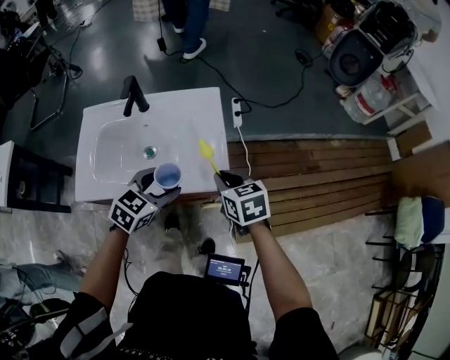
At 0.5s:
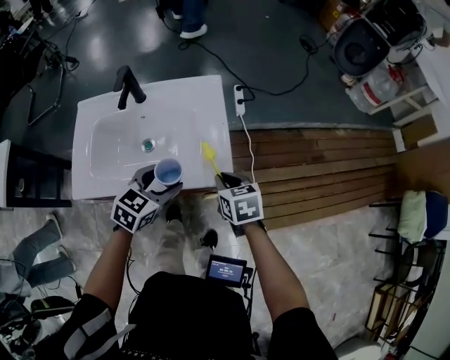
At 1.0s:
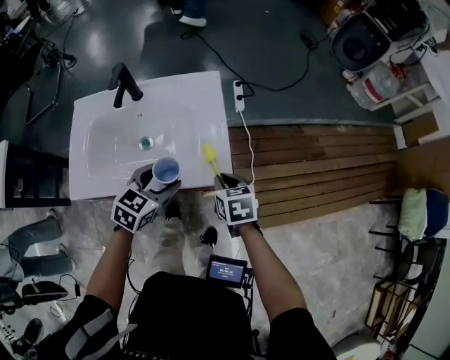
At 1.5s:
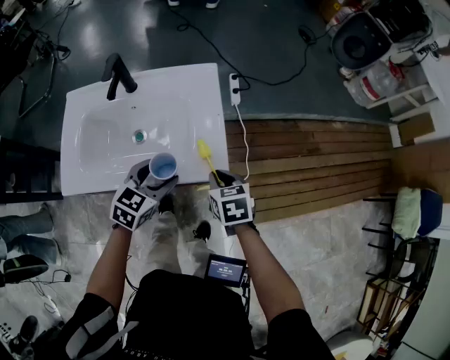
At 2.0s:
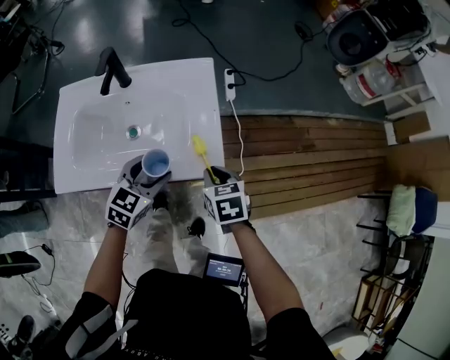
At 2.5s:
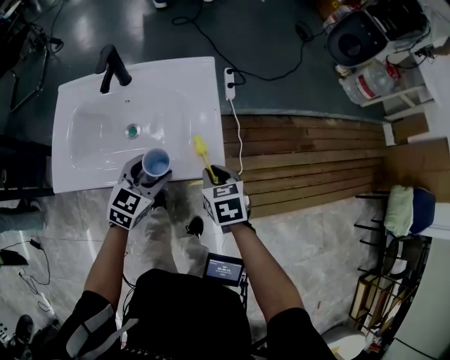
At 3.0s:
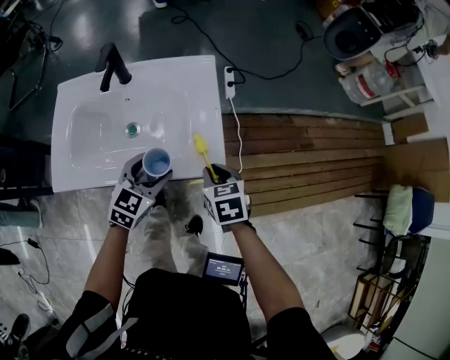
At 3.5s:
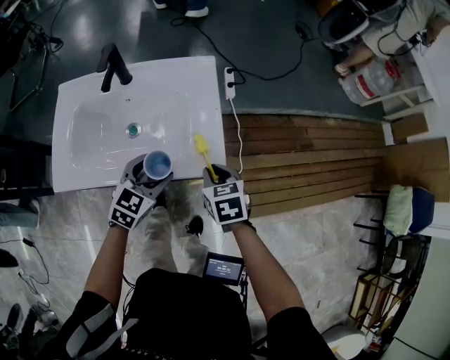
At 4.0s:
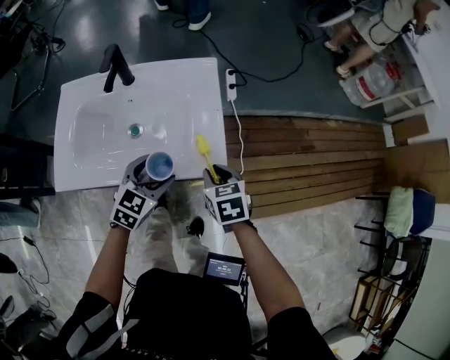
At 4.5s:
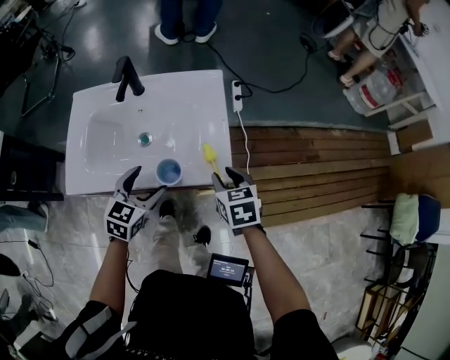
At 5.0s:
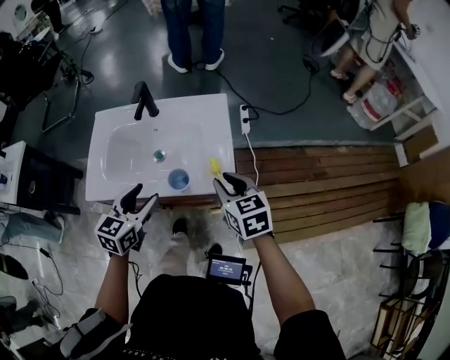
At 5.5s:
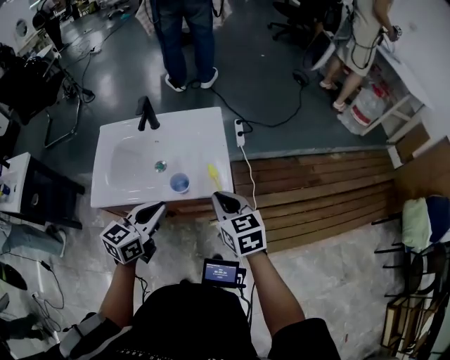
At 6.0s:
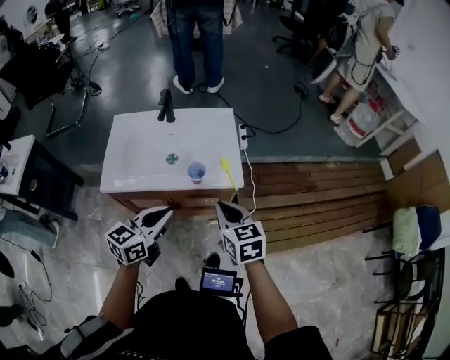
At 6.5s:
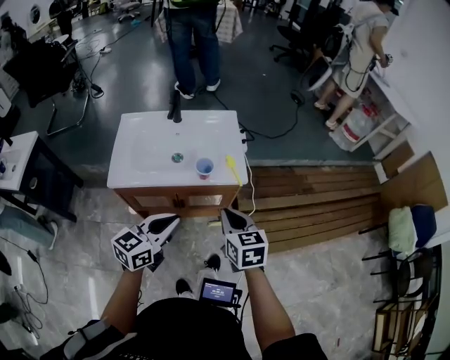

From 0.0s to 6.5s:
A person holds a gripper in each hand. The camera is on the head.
From 0.0s to 2.0s: Both grippers travel together downward, about 10 cm.
From 2.0s to 4.5s: The left gripper is displaced to the left by roughly 5 cm.
From 4.5s to 6.5s: Both grippers move backward and upward, some 25 cm. The left gripper changes its angle by some 30 degrees, and closes up. The right gripper closes.

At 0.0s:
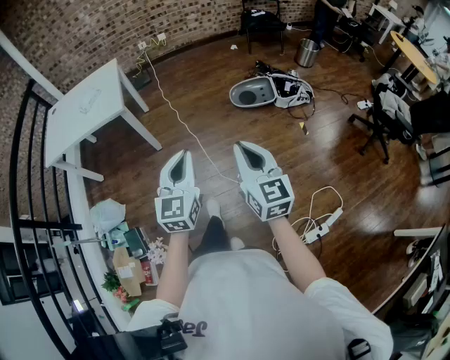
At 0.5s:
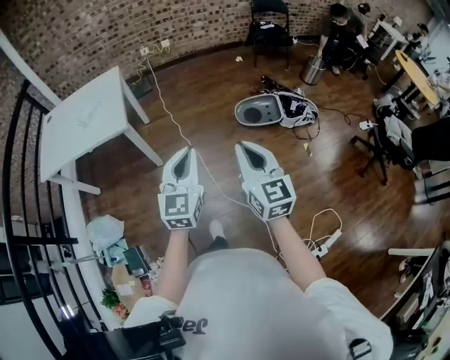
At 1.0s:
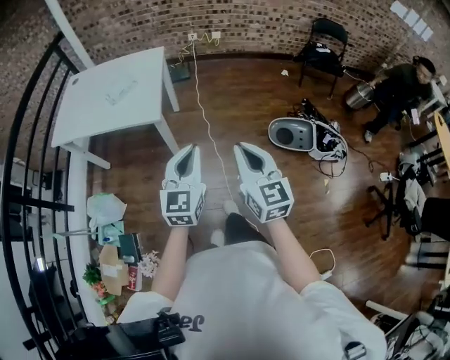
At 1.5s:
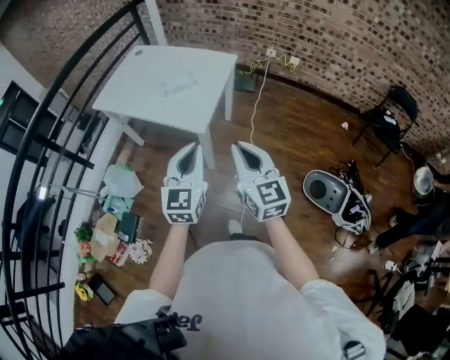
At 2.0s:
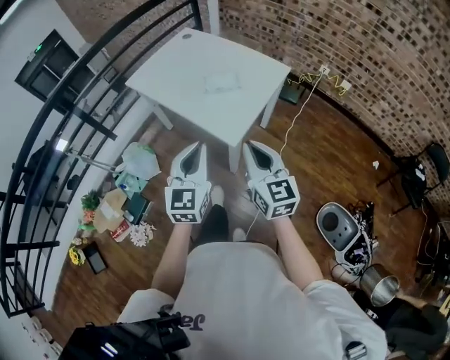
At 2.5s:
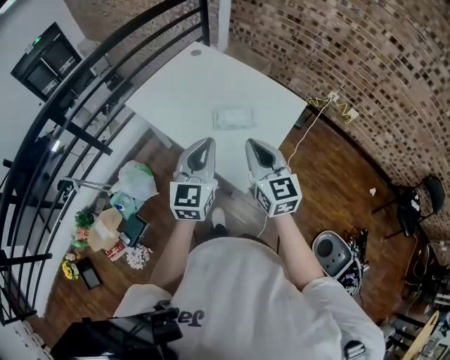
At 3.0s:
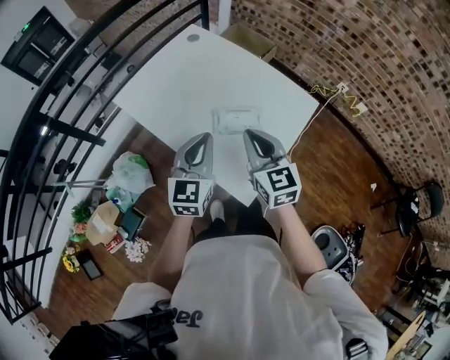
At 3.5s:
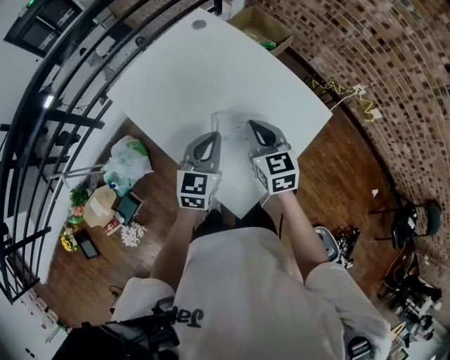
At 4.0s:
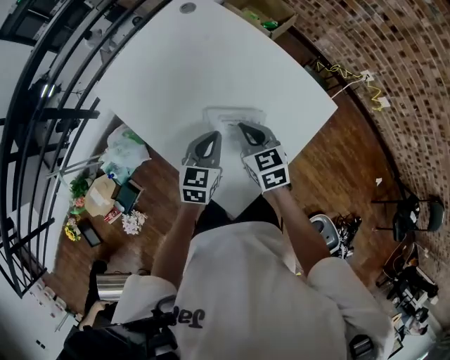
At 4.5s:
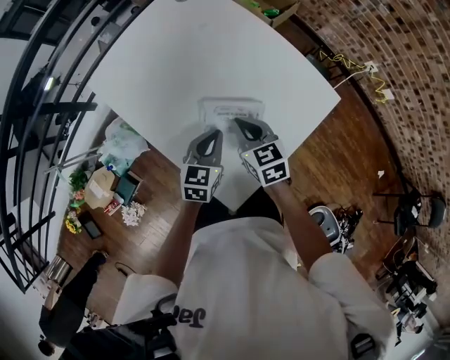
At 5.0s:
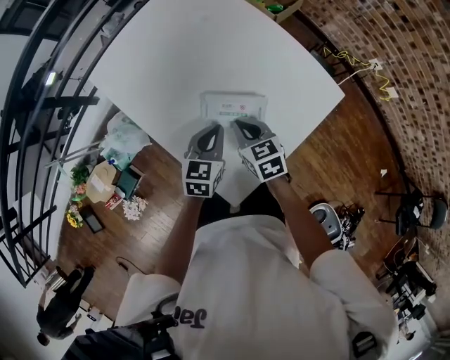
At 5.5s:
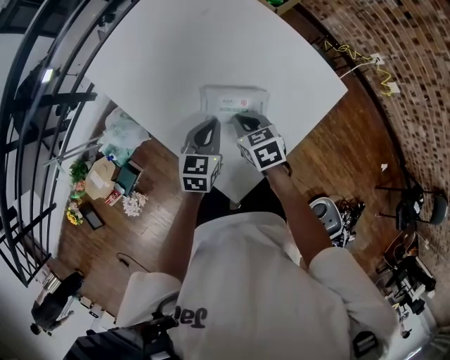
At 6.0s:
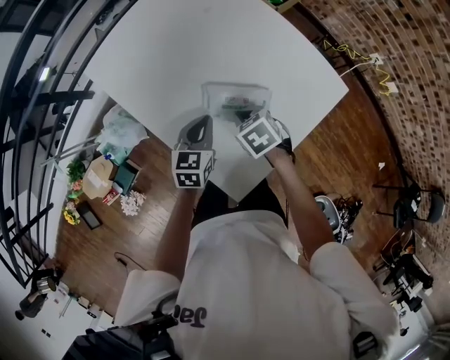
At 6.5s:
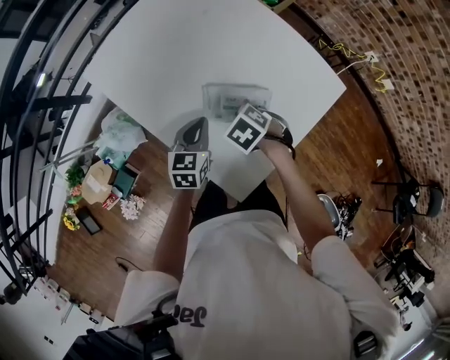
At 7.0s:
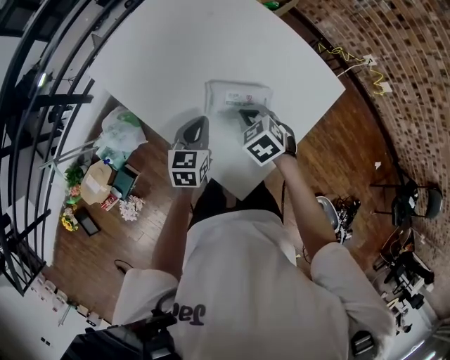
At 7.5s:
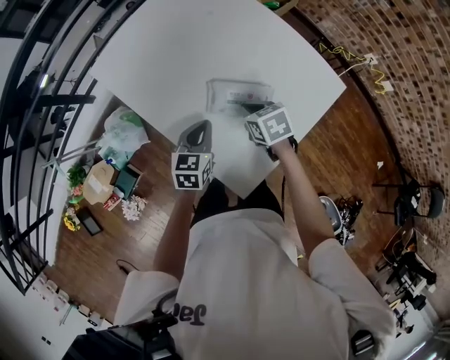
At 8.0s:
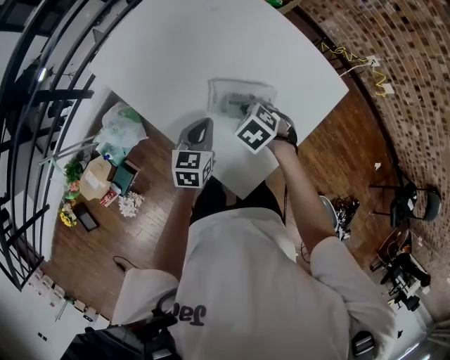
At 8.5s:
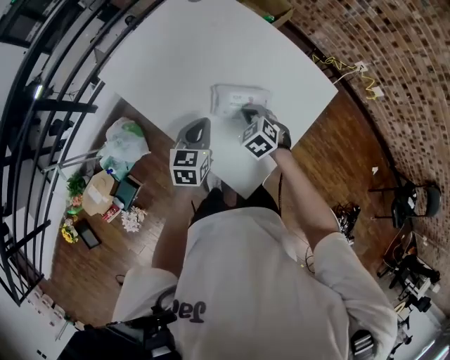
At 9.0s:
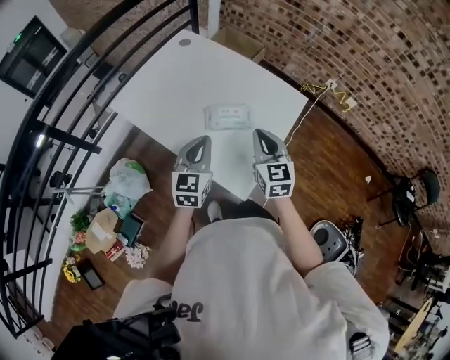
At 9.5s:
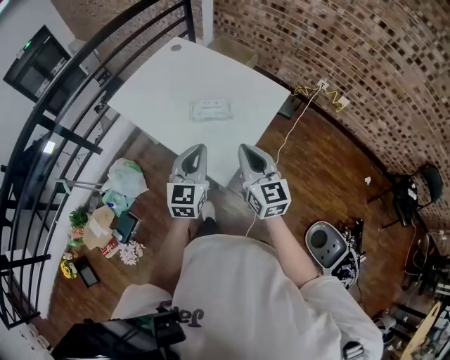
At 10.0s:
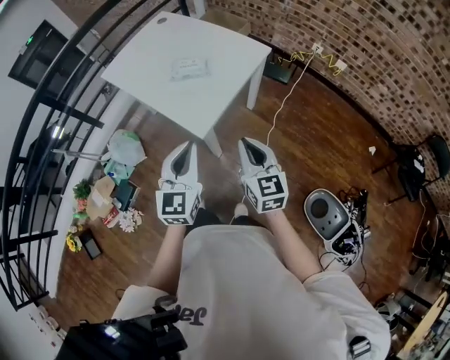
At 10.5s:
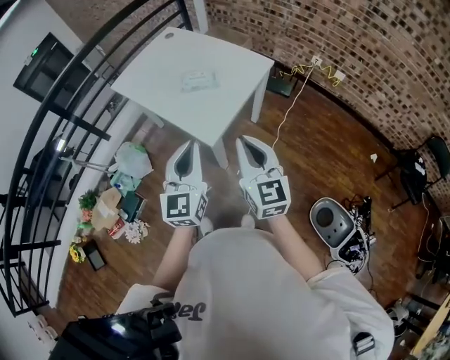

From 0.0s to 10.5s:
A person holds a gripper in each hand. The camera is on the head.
From 0.0s to 2.0s: The pair of grippers is taken some 60 cm. The right gripper rotates roughly 60 degrees. Meanwhile the left gripper turns by some 50 degrees.
From 2.0s to 4.0s: The pair of grippers is taken forward, some 40 cm. The two grippers go roughly 20 cm downward. The left gripper rotates some 30 degrees. The right gripper turns by approximately 30 degrees.
From 4.0s to 6.5s: The right gripper shifts about 10 cm downward, and points its fingers approximately 40 degrees further downward, while the left gripper travels downward by about 5 cm.
From 6.5s to 8.5s: The left gripper moves some 5 cm; the right gripper swivels some 20 degrees.
From 8.5s to 10.5s: Both grippers are carried backward, roughly 40 cm. The grippers both shift upward by some 30 cm. The right gripper tilts its fingers about 50 degrees upward. Meanwhile the left gripper tilts its fingers roughly 30 degrees upward.

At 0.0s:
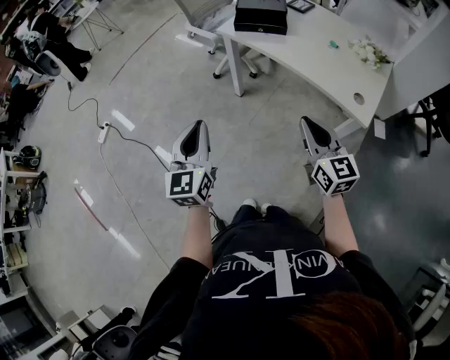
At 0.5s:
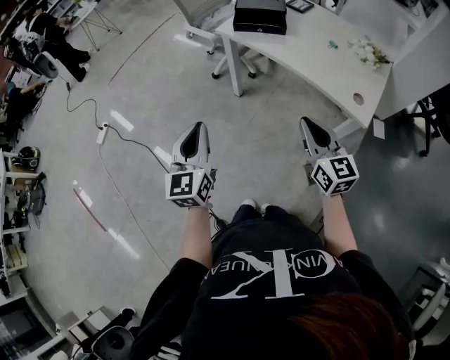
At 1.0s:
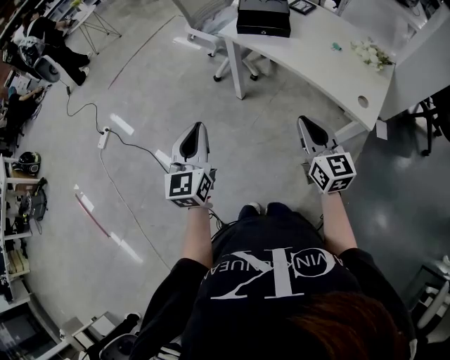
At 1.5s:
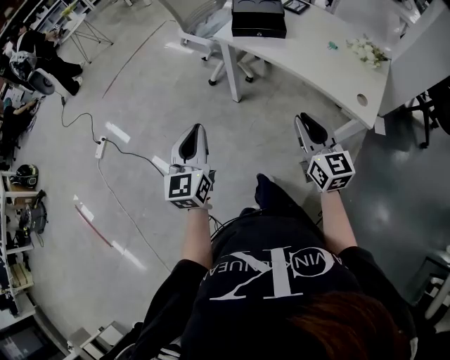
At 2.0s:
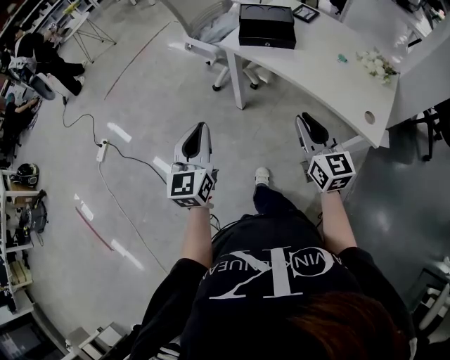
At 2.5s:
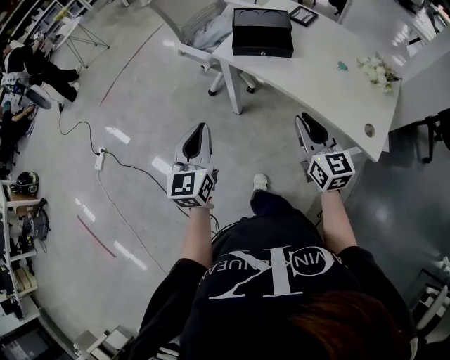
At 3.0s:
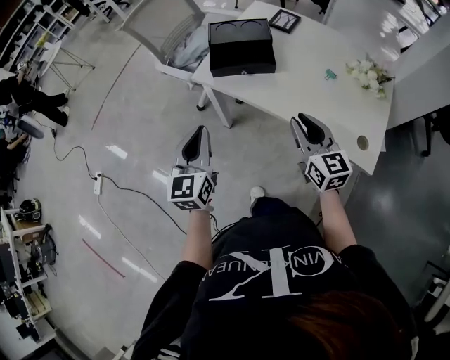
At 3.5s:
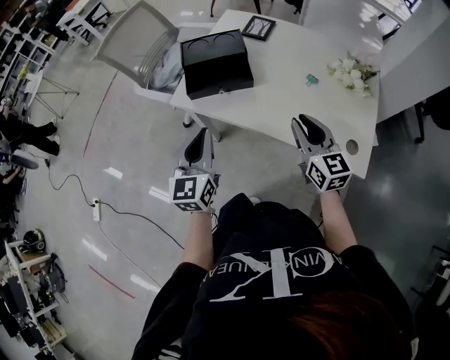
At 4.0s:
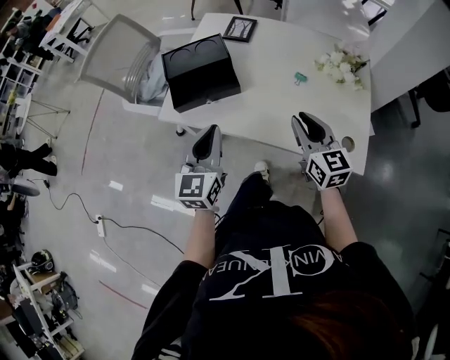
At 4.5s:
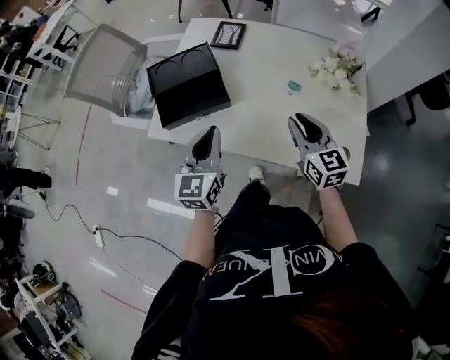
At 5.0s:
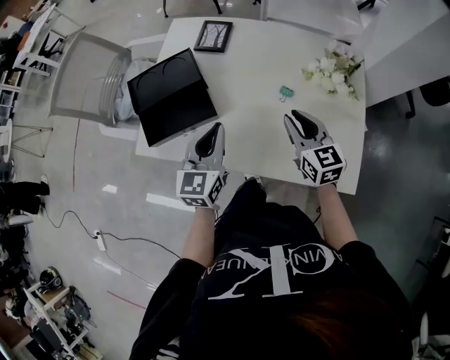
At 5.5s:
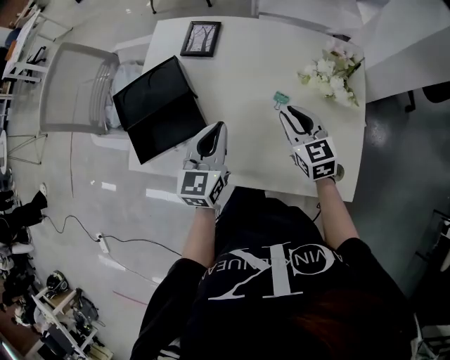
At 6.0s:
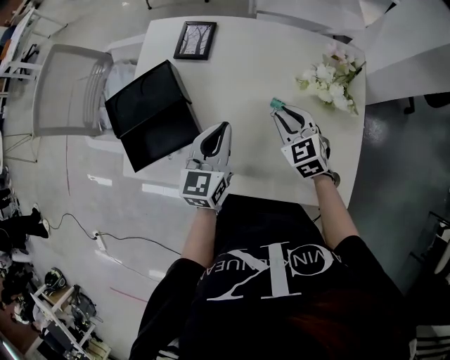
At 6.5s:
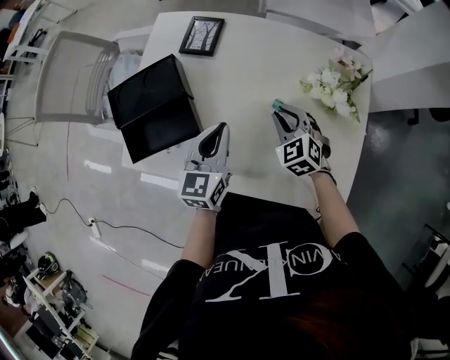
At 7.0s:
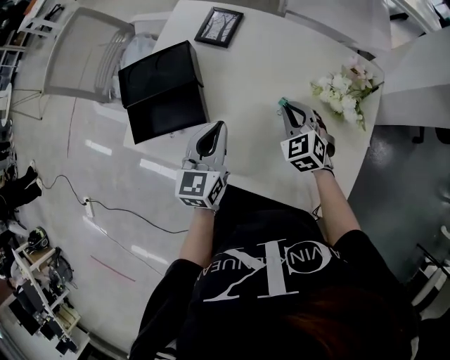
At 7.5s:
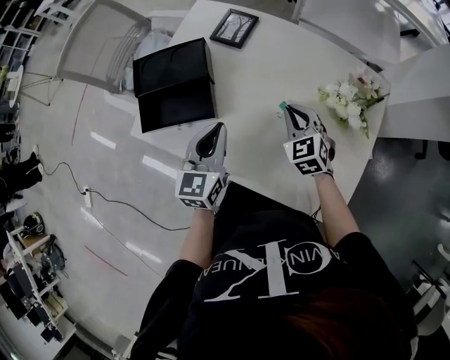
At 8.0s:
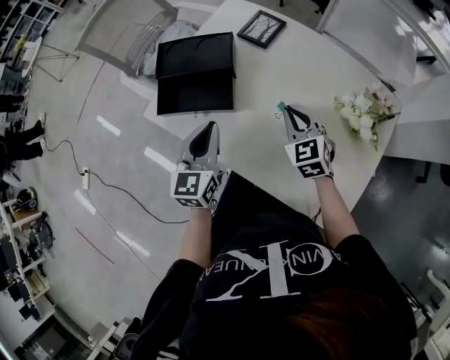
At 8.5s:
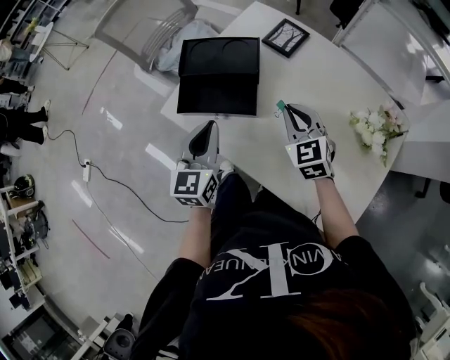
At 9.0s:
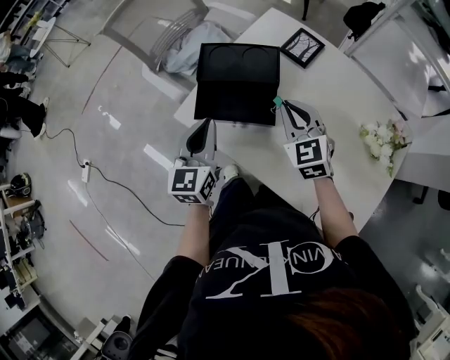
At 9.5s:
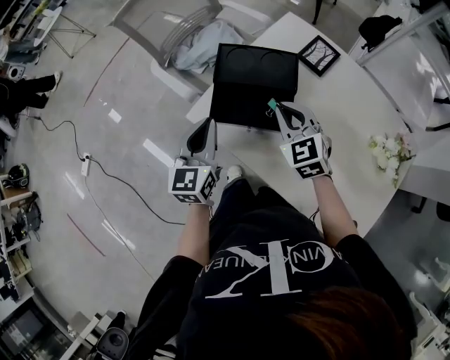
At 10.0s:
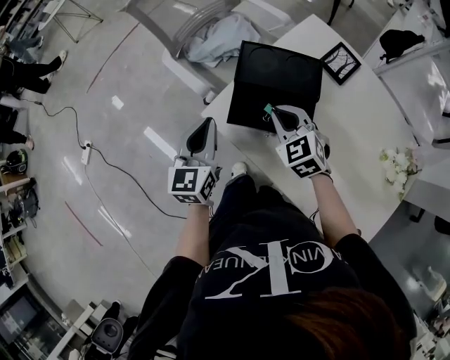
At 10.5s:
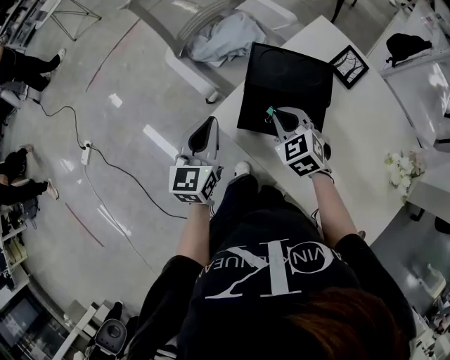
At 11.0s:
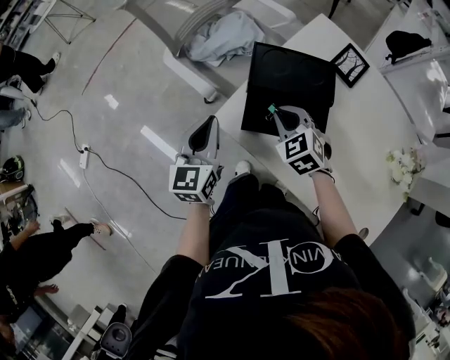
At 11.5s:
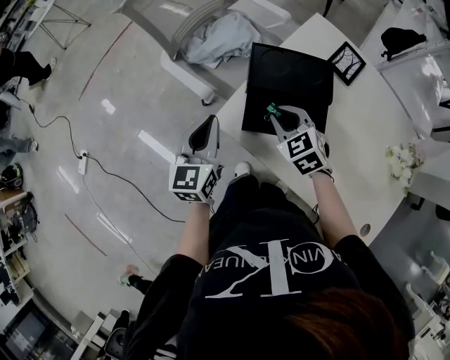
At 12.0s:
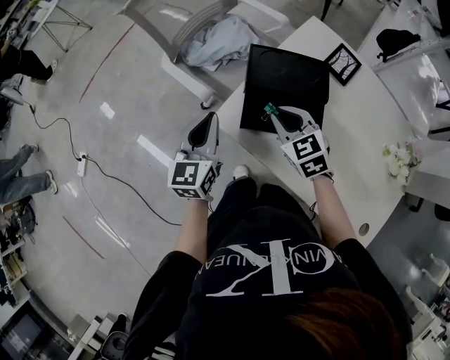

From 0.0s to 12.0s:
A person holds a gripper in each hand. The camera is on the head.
From 0.0s to 2.0s: Both grippers move forward, about 10 cm.
From 2.0s to 4.0s: The grippers both shift forward and to the right by roughly 30 cm. The left gripper rotates roughly 20 degrees.
From 4.0s to 6.0s: The left gripper moves forward and to the right, roughly 25 cm. The right gripper shifts approximately 20 cm forward and downward, and swivels about 30 degrees.
From 6.0s to 8.0s: The right gripper heads to the left, covering roughly 10 cm. The left gripper goes approximately 15 cm to the left and backward, and rotates about 30 degrees.
From 8.0s to 10.0s: Both grippers move to the left and forward, about 25 cm. The right gripper turns by approximately 20 degrees.
From 10.0s to 12.0s: The grippers stay close to where they were, moving slightly.
